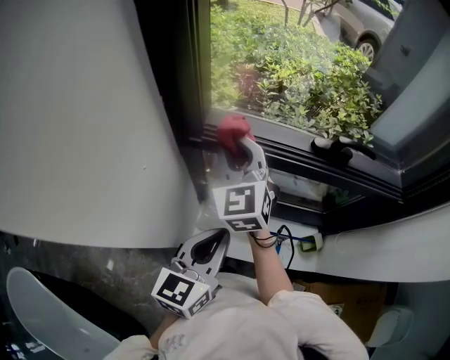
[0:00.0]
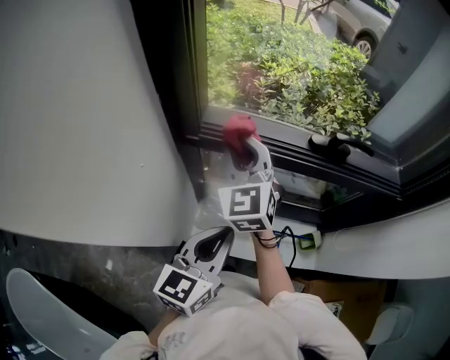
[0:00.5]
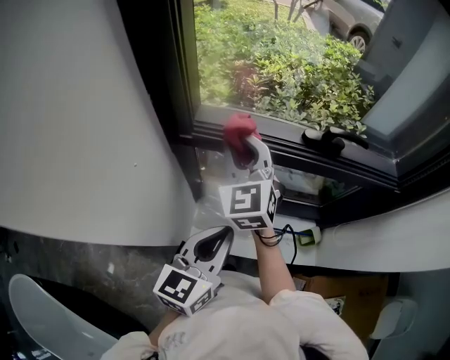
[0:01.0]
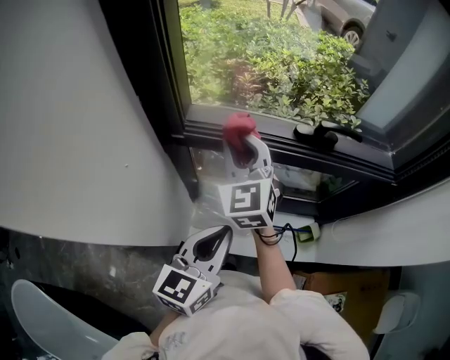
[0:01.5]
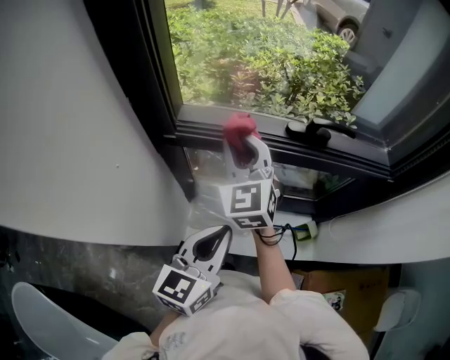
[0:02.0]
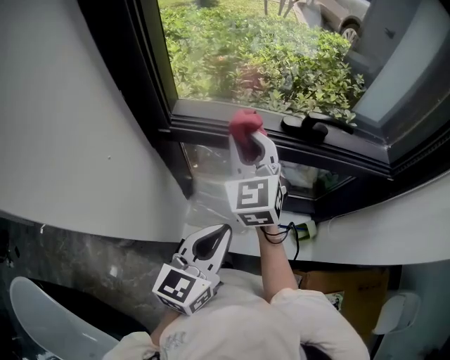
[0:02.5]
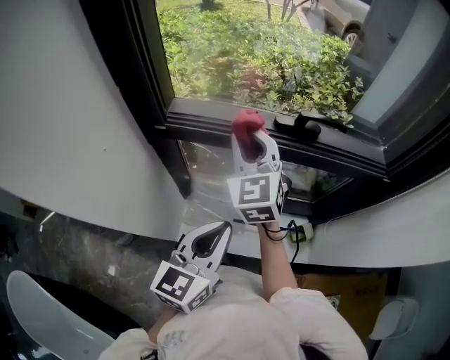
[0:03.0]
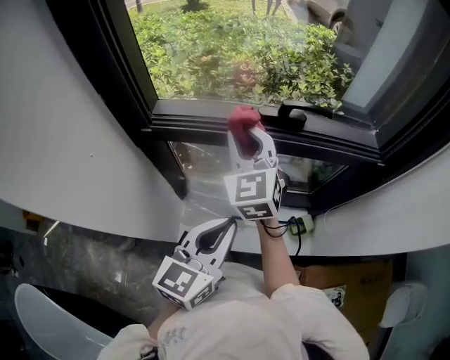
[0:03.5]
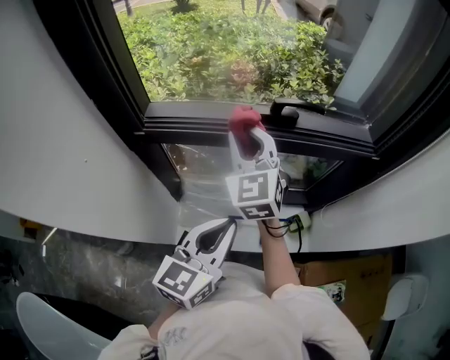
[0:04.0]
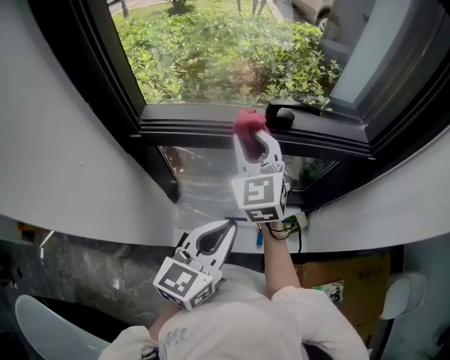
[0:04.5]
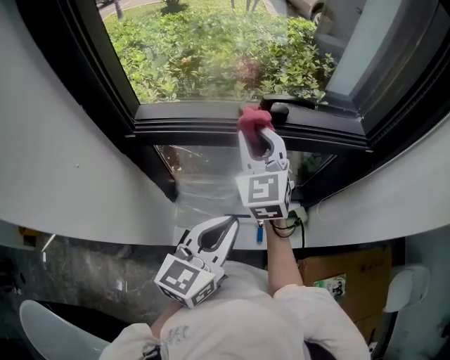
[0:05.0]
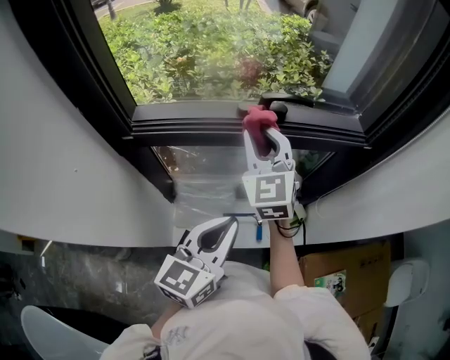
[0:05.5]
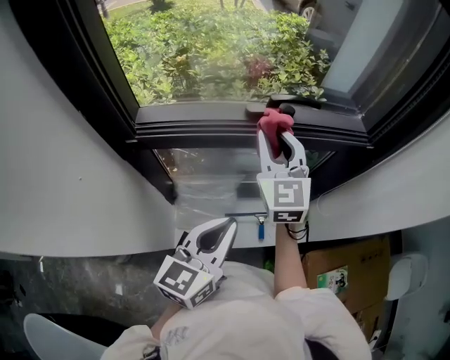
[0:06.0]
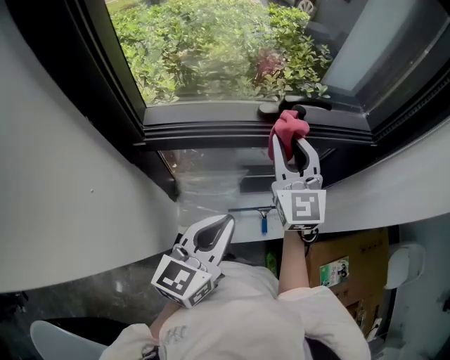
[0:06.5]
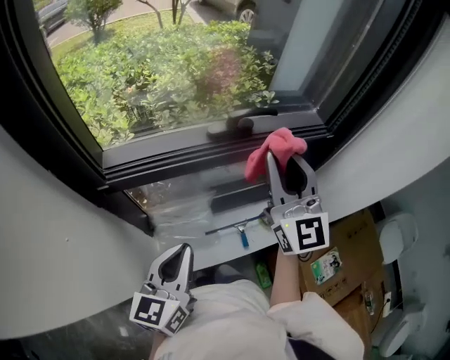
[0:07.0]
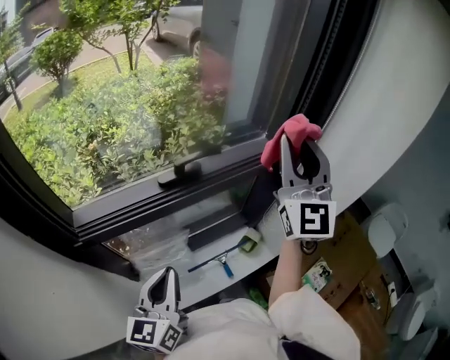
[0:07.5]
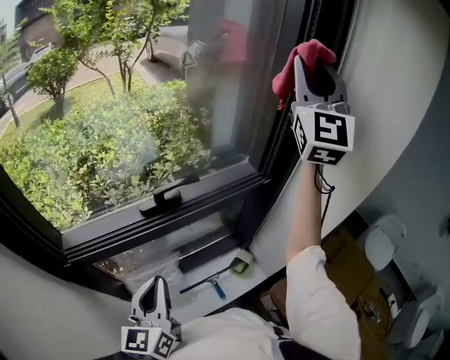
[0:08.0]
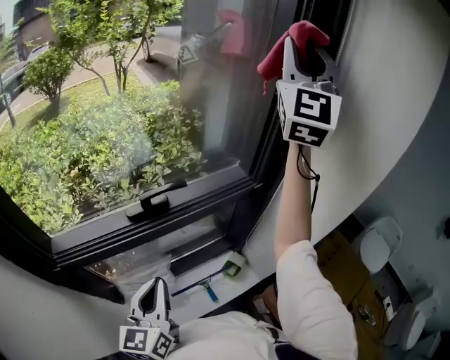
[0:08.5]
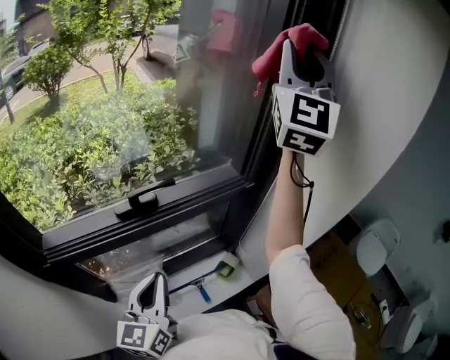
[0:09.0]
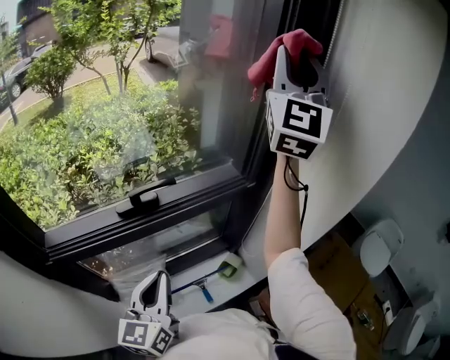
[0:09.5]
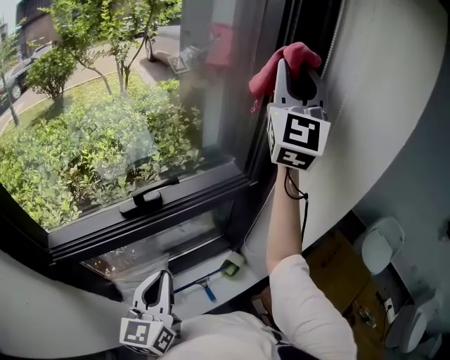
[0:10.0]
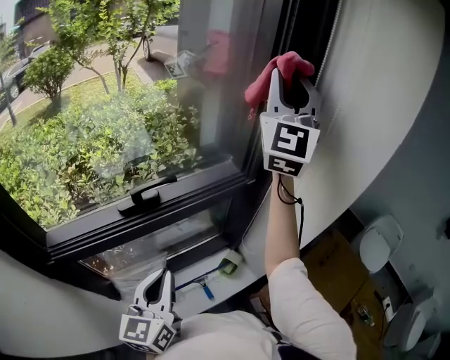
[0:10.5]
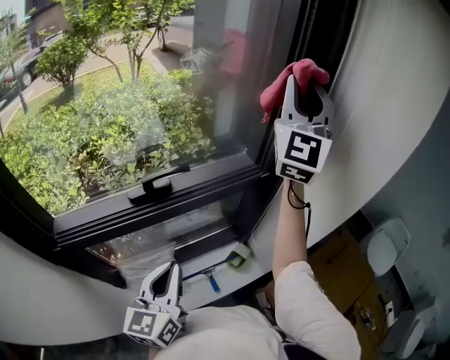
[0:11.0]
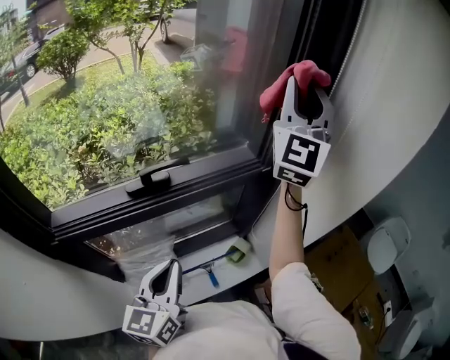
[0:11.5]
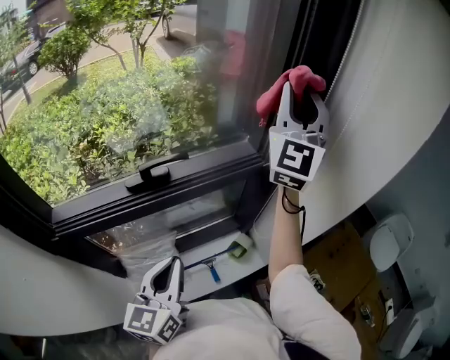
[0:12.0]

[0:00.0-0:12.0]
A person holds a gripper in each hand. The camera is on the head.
0:00.0 to 0:02.0: The right gripper is displaced to the right by some 10 cm.
0:02.0 to 0:04.0: The grippers both shift to the right by approximately 10 cm.
0:04.0 to 0:06.0: The right gripper travels to the right by roughly 5 cm.
0:06.0 to 0:08.0: The left gripper goes approximately 5 cm forward, and reaches about 10 cm to the left, then returns. The right gripper shifts about 50 cm upward and to the right, and tilts its fingers approximately 40 degrees upward.
0:08.0 to 0:10.0: The left gripper is displaced to the right by roughly 5 cm.
0:10.0 to 0:12.0: The right gripper shifts roughly 10 cm downward.

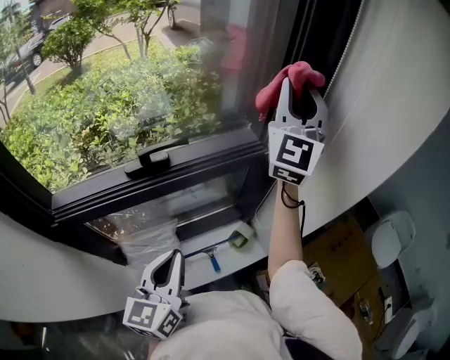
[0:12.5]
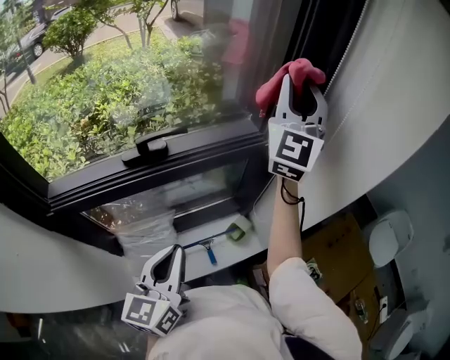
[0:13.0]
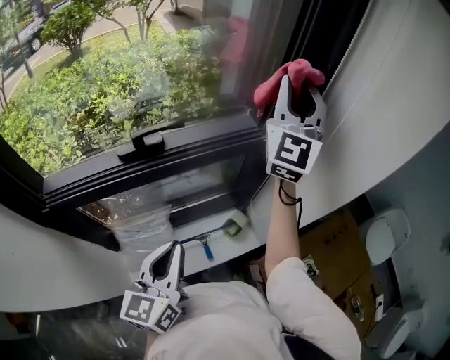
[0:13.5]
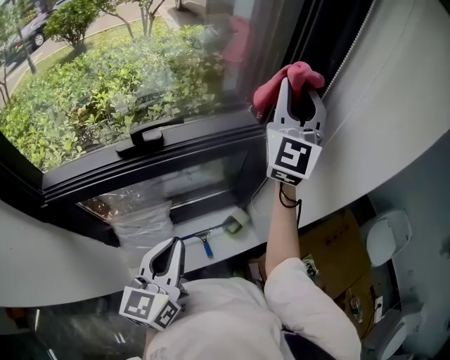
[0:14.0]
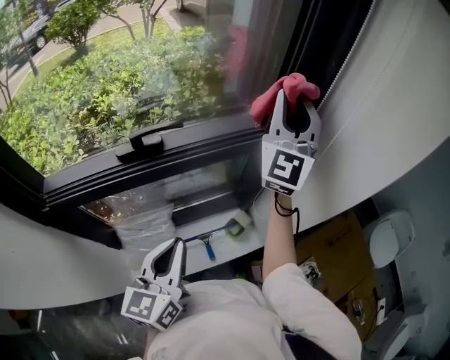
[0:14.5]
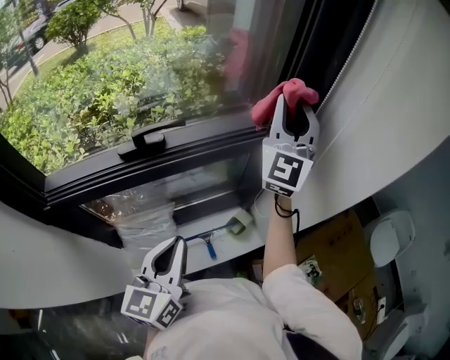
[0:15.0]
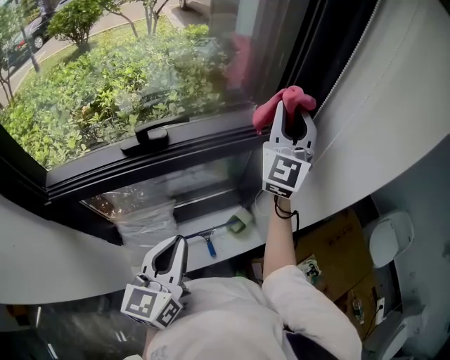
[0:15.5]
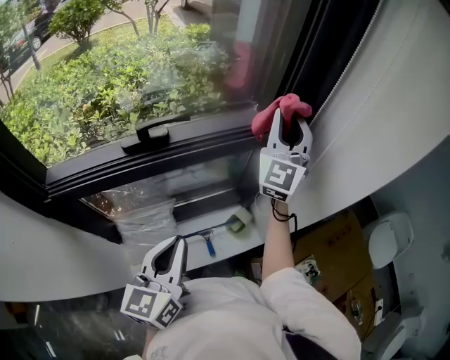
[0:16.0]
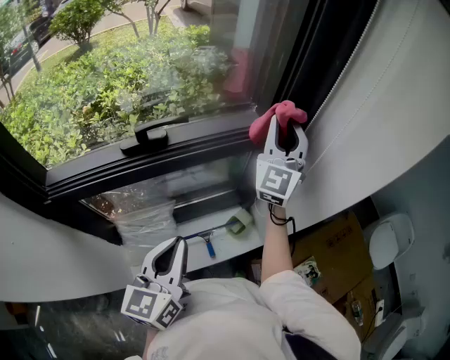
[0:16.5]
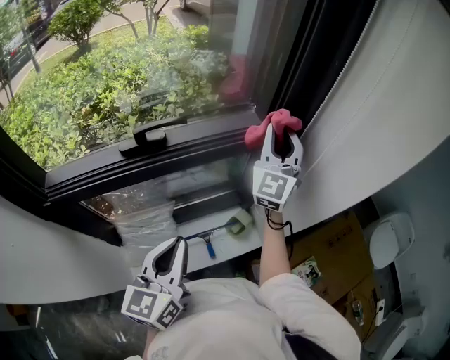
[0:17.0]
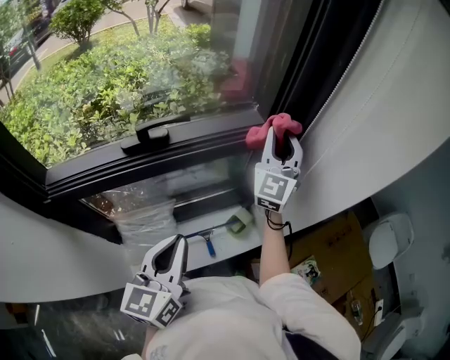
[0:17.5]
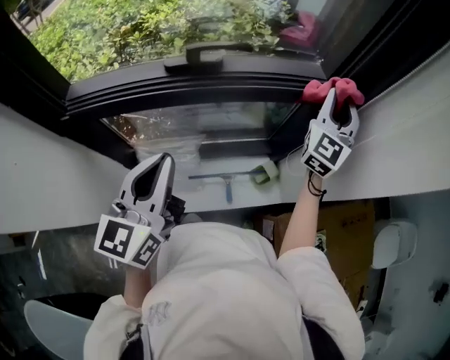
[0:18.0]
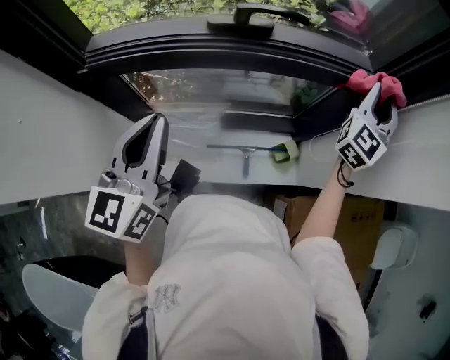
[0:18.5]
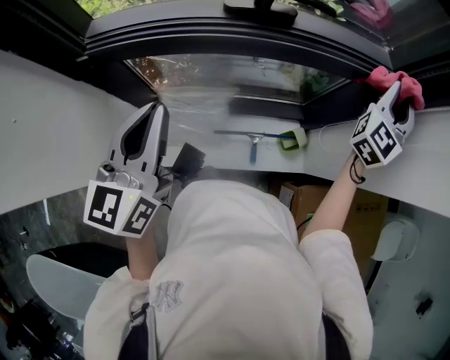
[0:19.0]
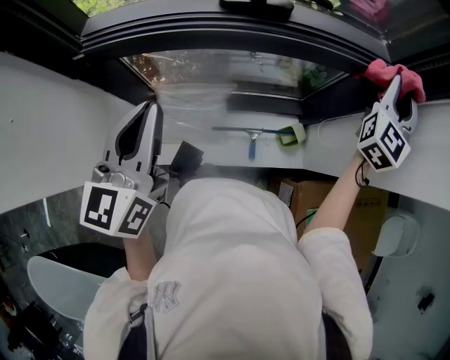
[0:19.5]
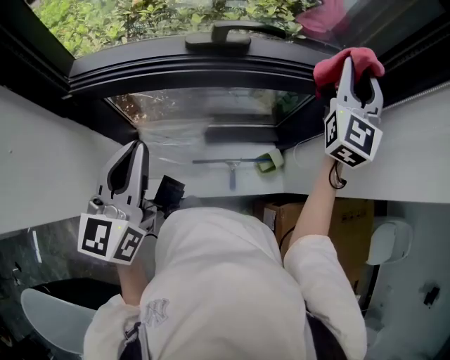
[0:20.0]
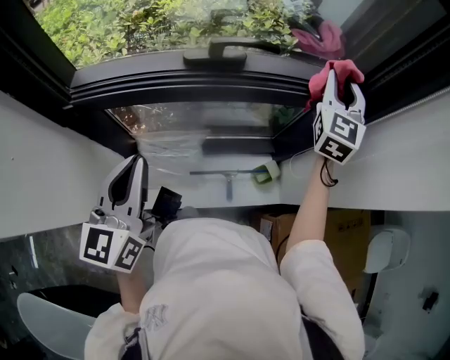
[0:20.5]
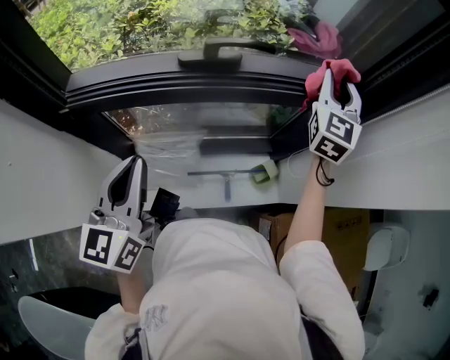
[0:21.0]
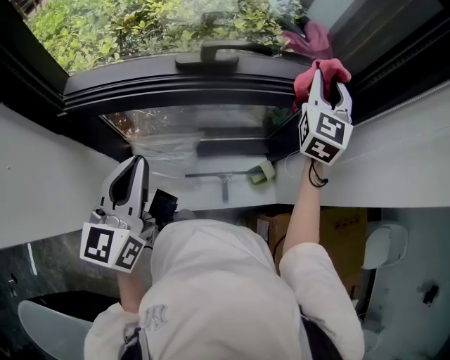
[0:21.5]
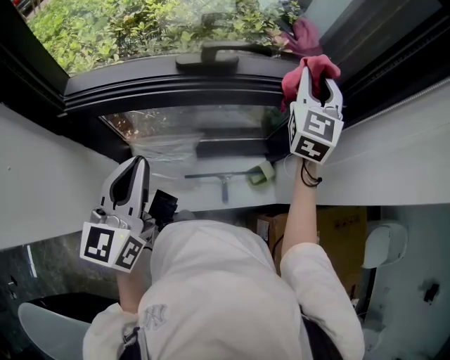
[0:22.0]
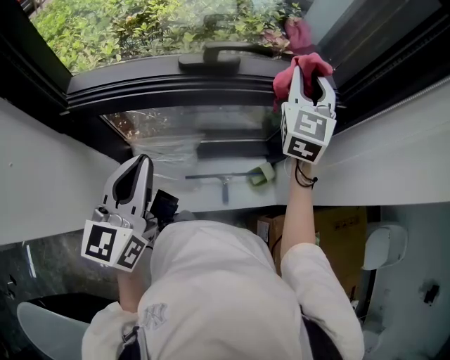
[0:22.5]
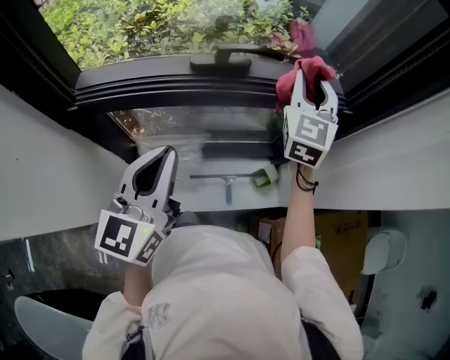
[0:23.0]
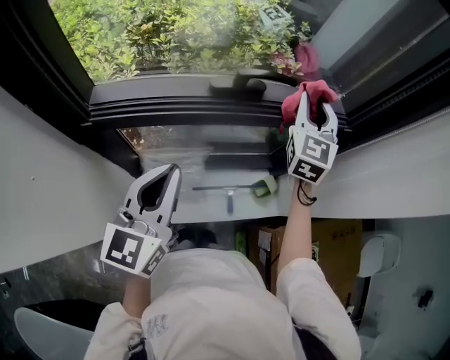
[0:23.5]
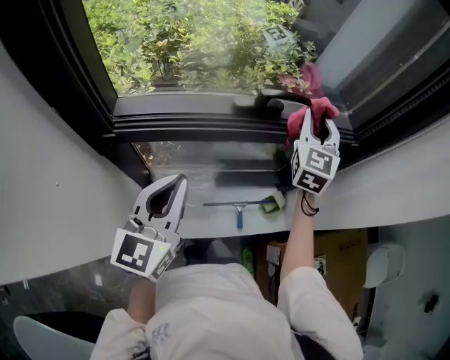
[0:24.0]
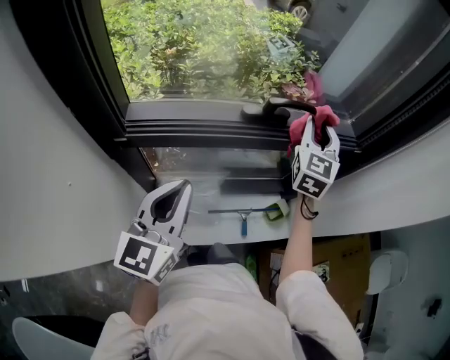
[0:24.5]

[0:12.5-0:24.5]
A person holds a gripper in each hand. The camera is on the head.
0:12.5 to 0:14.5: The right gripper heads downward, covering about 5 cm.
0:14.5 to 0:16.5: The right gripper goes approximately 10 cm downward.
0:16.5 to 0:18.5: The right gripper shifts approximately 5 cm downward. Meanwhile the left gripper travels to the left by some 15 cm, and turns by some 20 degrees.
0:18.5 to 0:20.5: The right gripper travels to the left by about 5 cm.
0:20.5 to 0:22.5: The right gripper heads to the left, covering about 5 cm.
0:22.5 to 0:24.5: Both grippers travel together to the left, approximately 5 cm.

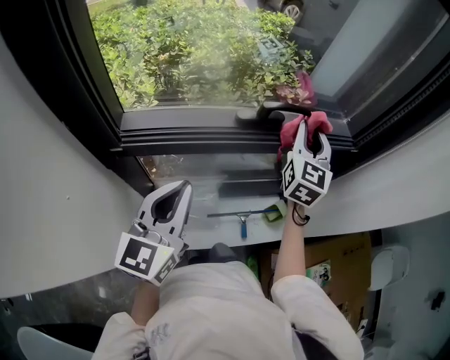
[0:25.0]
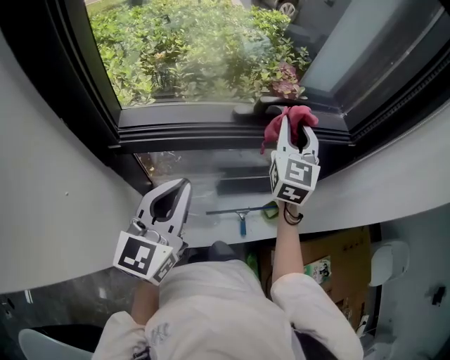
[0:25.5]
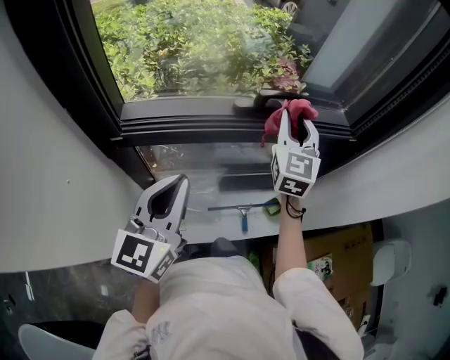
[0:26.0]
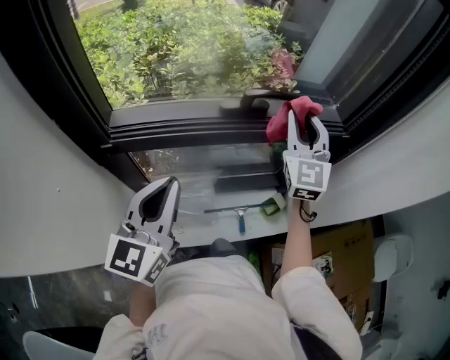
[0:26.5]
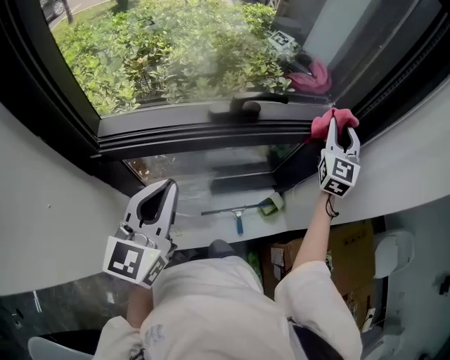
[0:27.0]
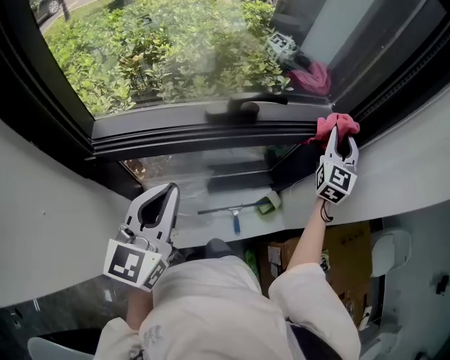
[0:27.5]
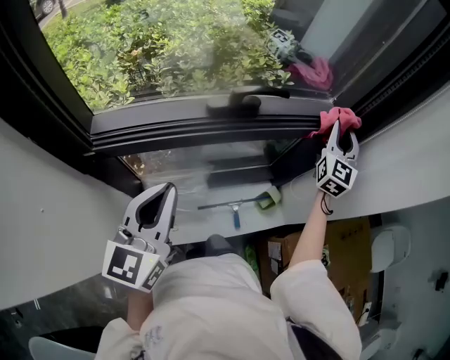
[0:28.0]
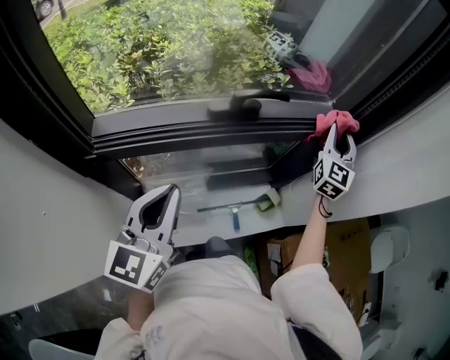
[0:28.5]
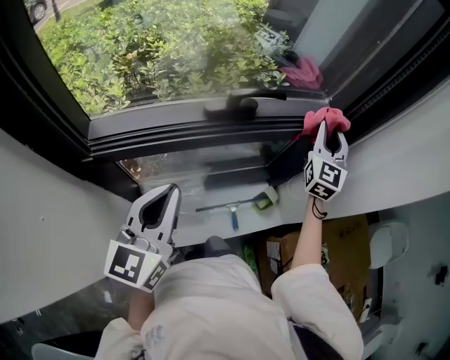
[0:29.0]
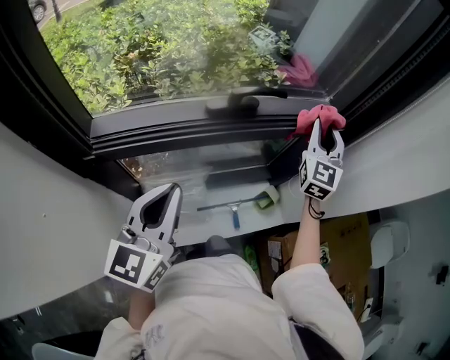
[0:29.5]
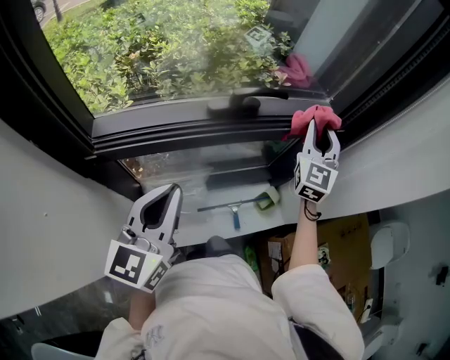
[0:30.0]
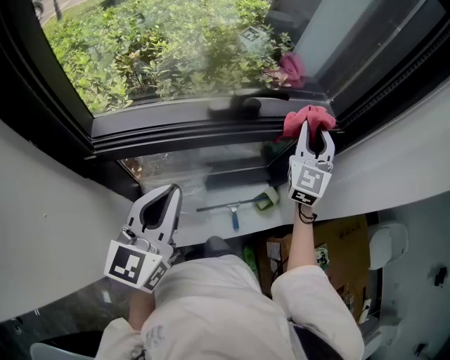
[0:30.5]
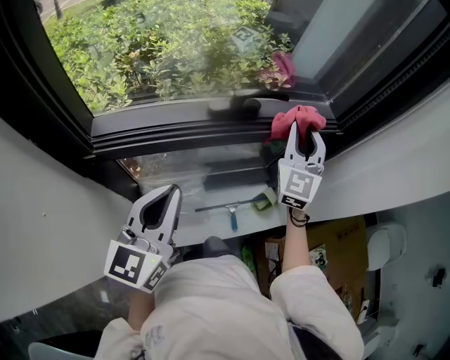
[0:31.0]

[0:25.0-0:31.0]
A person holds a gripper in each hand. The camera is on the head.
0:25.0 to 0:27.0: The right gripper heads to the right, covering some 15 cm.
0:27.0 to 0:29.0: The grippers make only small movements.
0:29.0 to 0:31.0: The right gripper travels to the left by some 10 cm.
